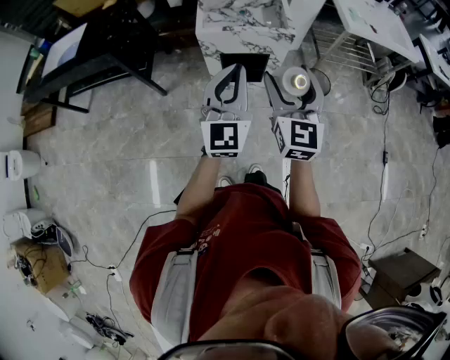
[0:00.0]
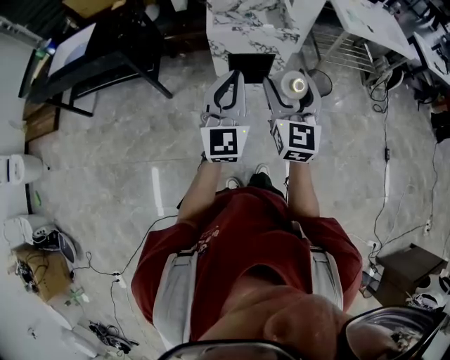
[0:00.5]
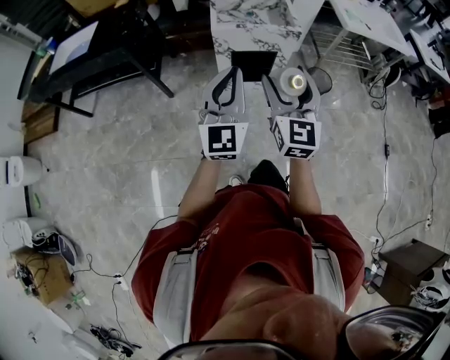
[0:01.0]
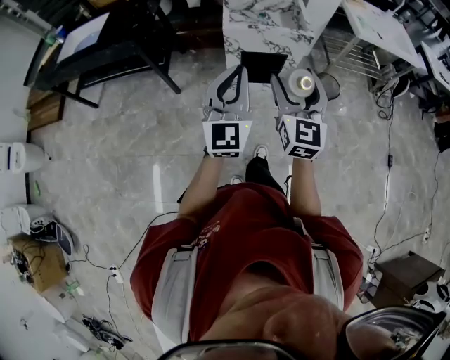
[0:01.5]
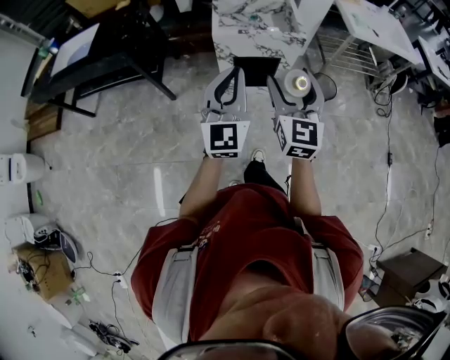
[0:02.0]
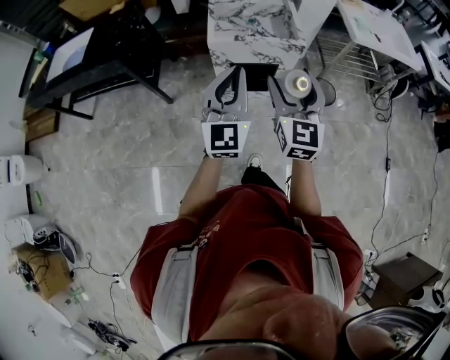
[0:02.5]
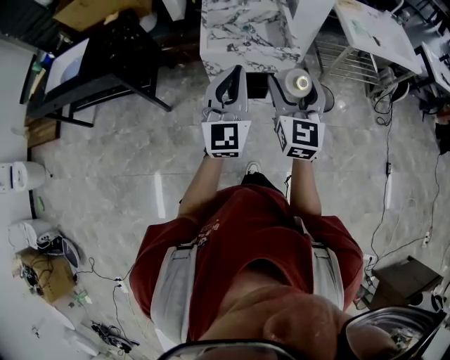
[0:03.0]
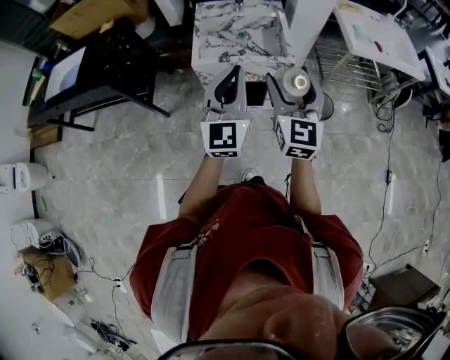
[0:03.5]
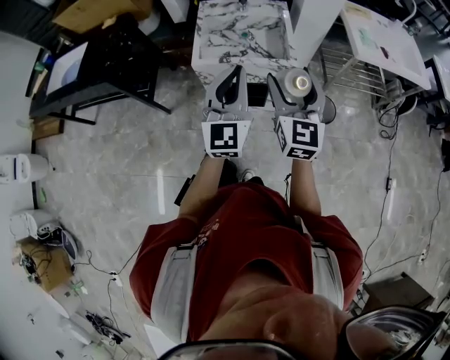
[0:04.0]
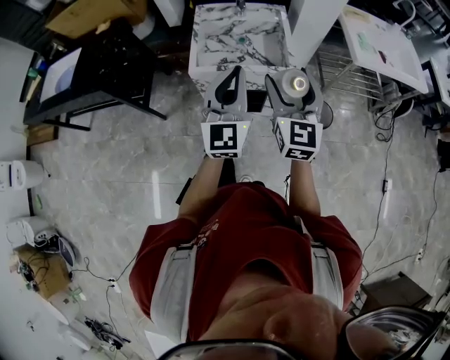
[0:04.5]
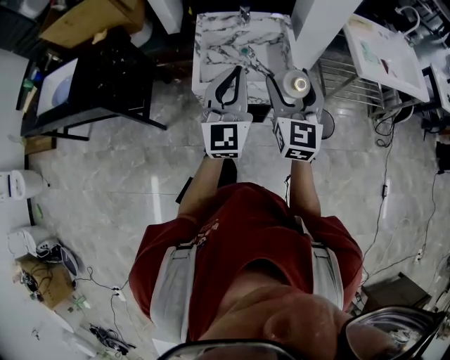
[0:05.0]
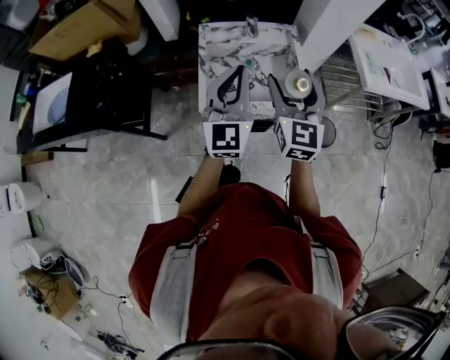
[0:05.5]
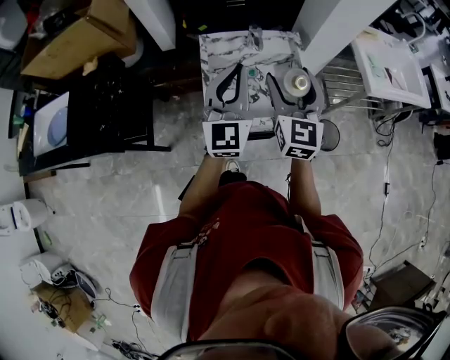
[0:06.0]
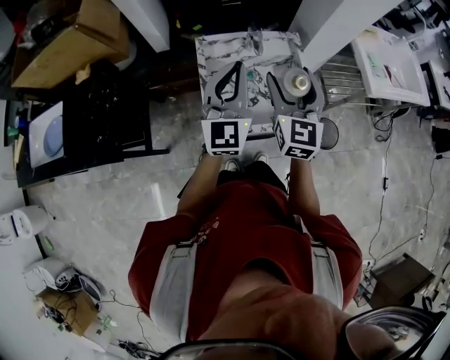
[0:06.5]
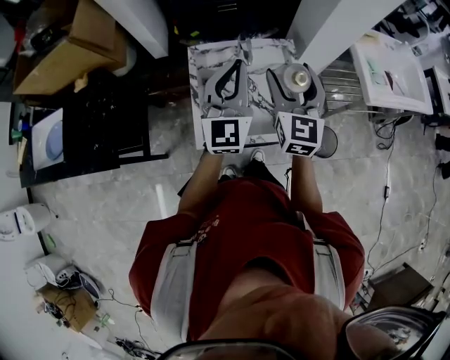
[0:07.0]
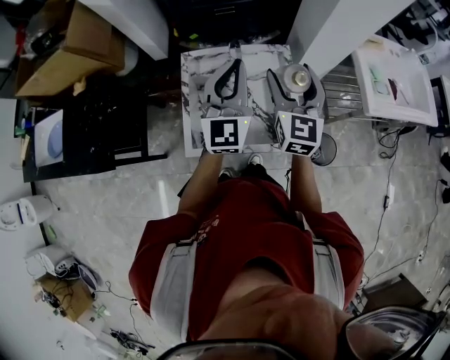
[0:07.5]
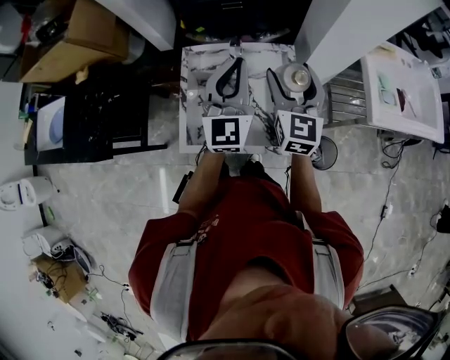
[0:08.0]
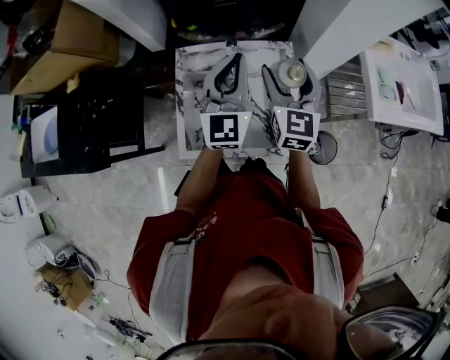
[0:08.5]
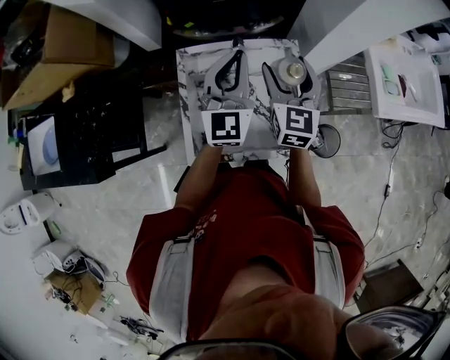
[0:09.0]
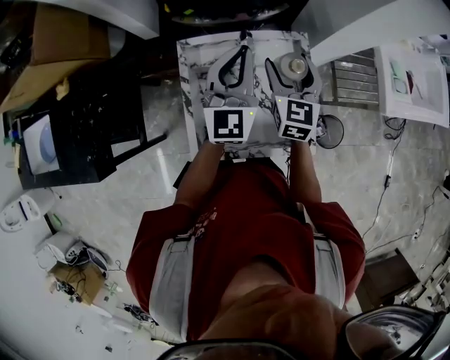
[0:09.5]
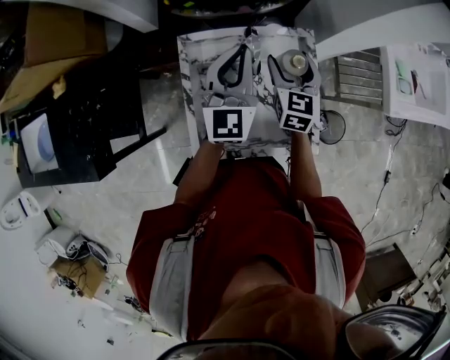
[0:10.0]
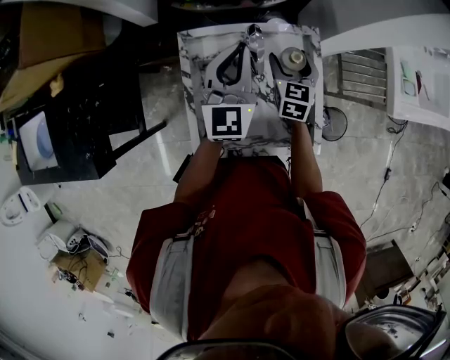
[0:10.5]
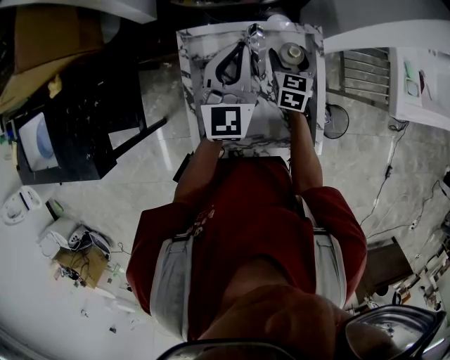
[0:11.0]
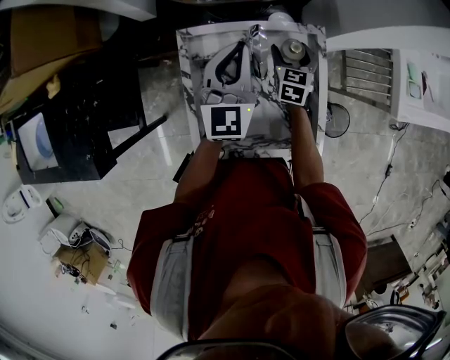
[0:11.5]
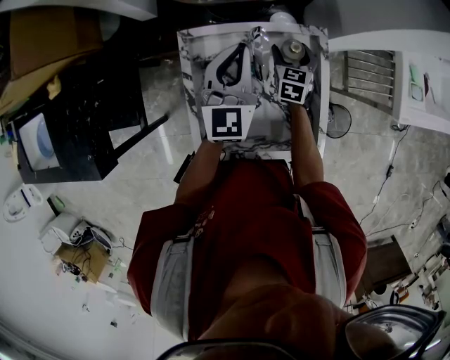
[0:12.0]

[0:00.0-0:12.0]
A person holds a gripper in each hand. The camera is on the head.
0:00.0 to 0:02.0: Both grippers travel together to the left, approximately 5 cm. The right gripper travels backward and back again, roughly 10 cm each way.
0:02.0 to 0:04.0: The two grippers go roughly 25 cm forward and to the right.
0:04.0 to 0:06.0: The two grippers go some 30 cm forward and to the left.
0:06.0 to 0:08.0: The grippers both shift forward and to the right by some 20 cm.
0:08.0 to 0:10.0: The right gripper moves downward, forward and to the left, some 20 cm. Meanwhile the left gripper moves forward, downward and to the left, approximately 15 cm.
0:10.0 to 0:12.0: The left gripper goes about 5 cm downward. The right gripper travels downward and forward by roughly 15 cm.

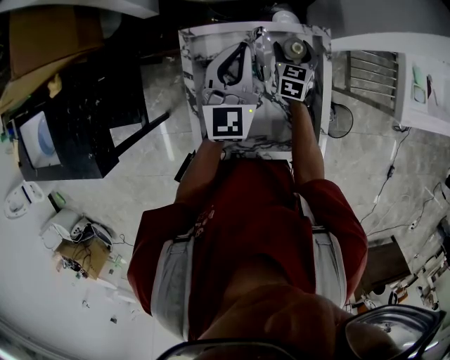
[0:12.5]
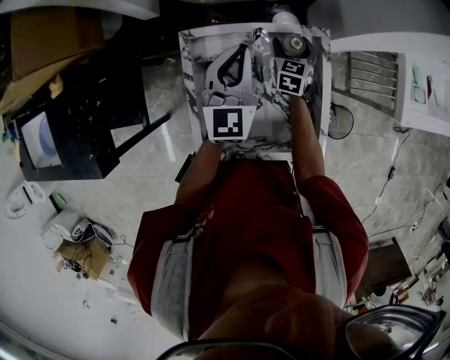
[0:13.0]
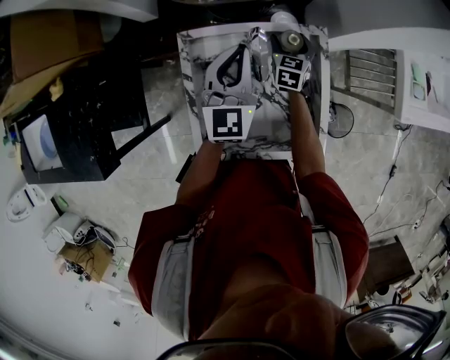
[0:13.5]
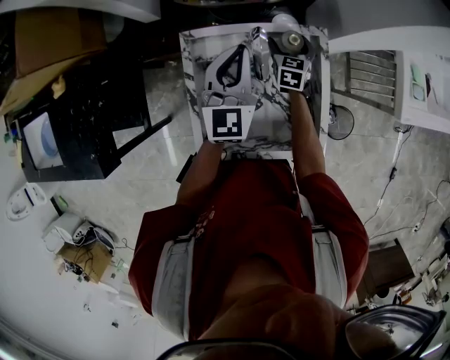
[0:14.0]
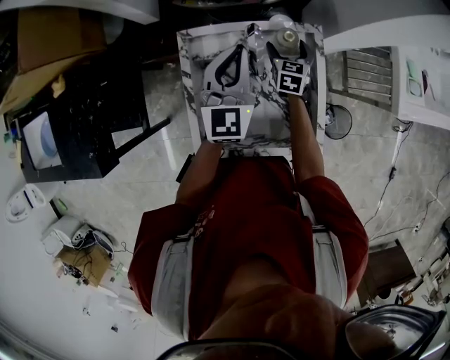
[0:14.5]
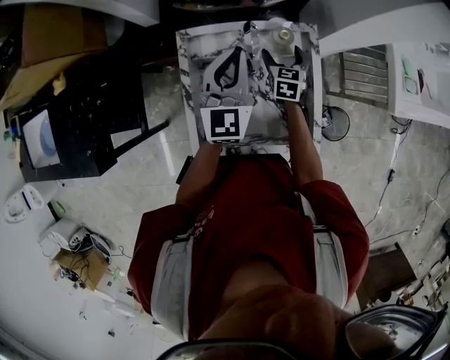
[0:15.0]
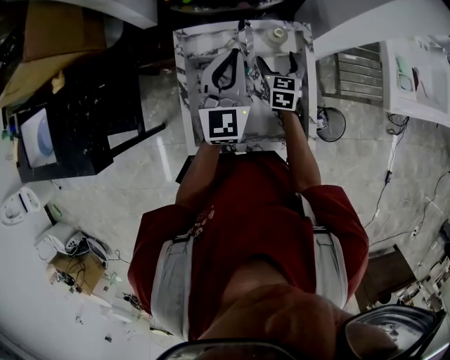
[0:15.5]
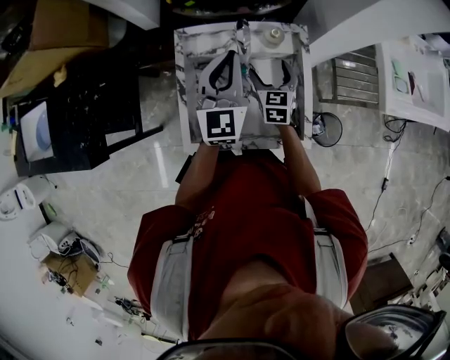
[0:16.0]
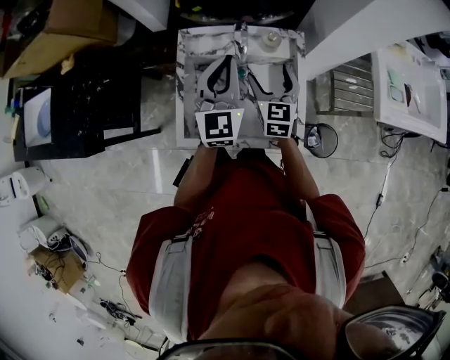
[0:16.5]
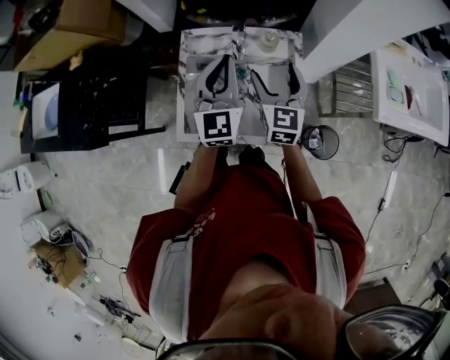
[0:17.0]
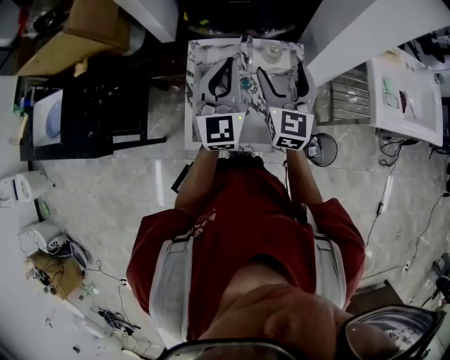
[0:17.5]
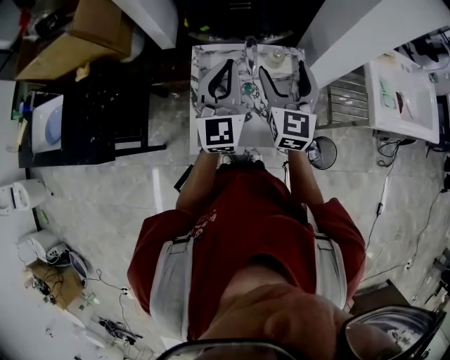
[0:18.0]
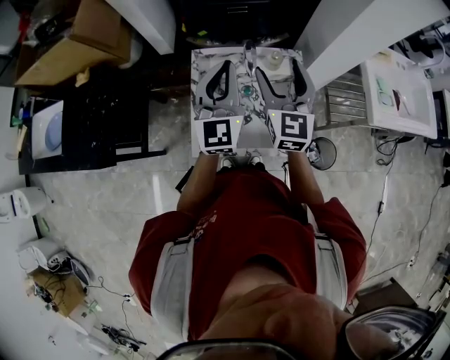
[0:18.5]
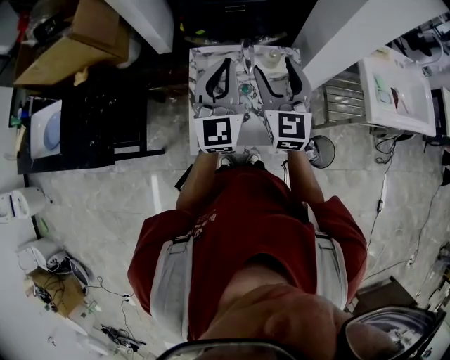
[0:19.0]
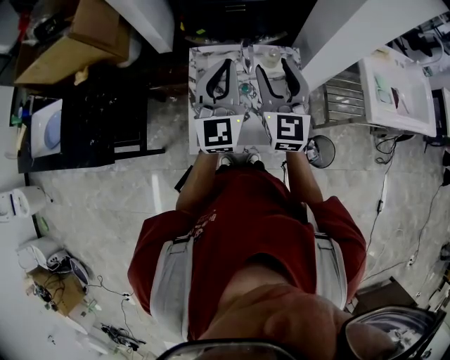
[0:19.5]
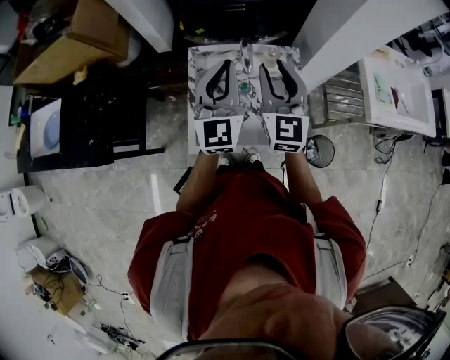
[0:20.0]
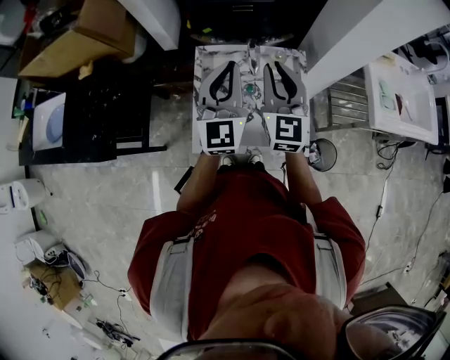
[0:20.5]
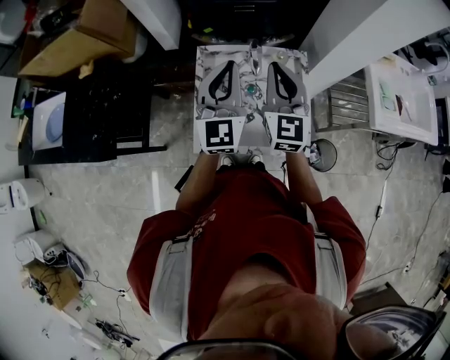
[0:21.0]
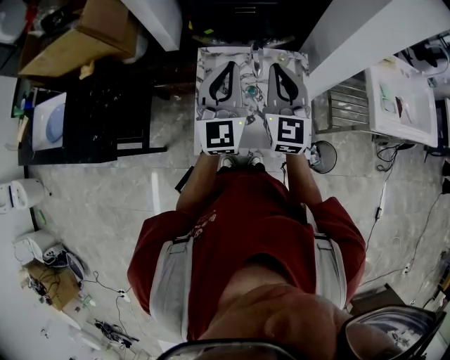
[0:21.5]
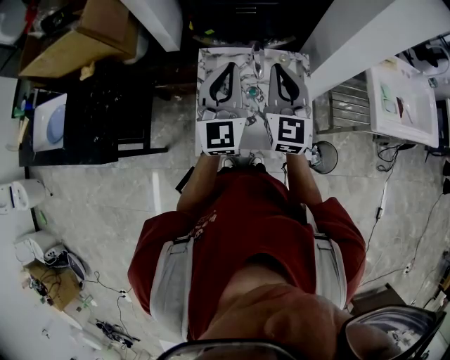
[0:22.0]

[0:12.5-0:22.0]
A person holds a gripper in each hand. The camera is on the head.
0:12.5 to 0:14.5: There are only small adjustments of the grippers.
0:14.5 to 0:16.5: The right gripper shifts some 20 cm backward and upward, and turns by approximately 20 degrees. The left gripper is displaced backward by approximately 10 cm.
0:16.5 to 0:18.0: The right gripper travels upward by approximately 20 cm; the left gripper travels upward by some 10 cm.
0:18.0 to 0:20.0: The right gripper closes its fingers.
0:20.0 to 0:22.0: The grippers move only a little.

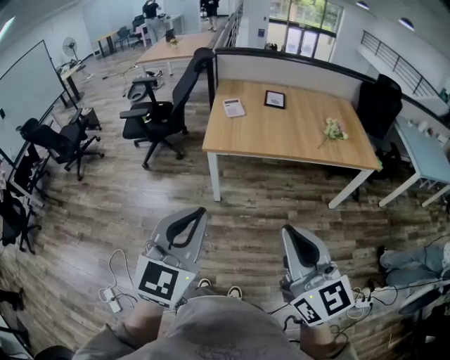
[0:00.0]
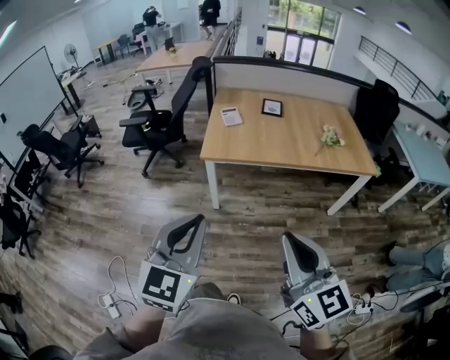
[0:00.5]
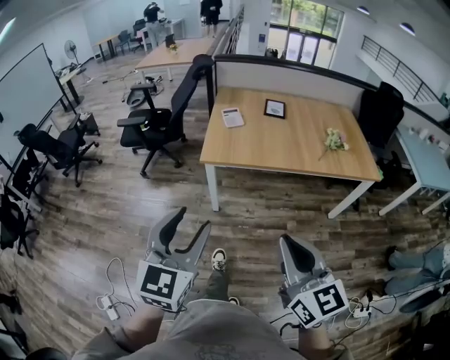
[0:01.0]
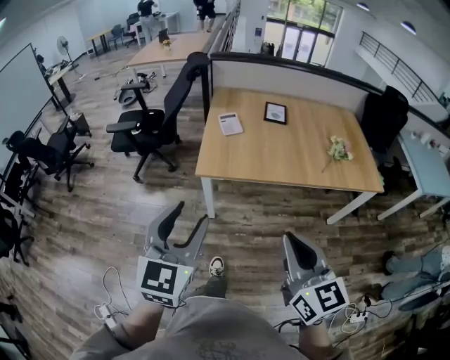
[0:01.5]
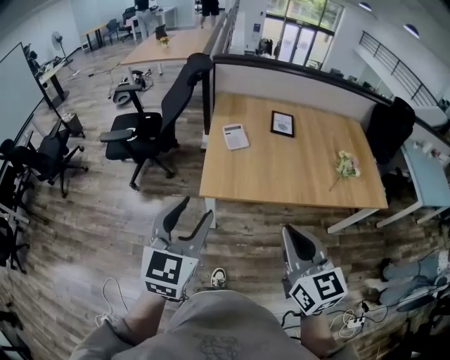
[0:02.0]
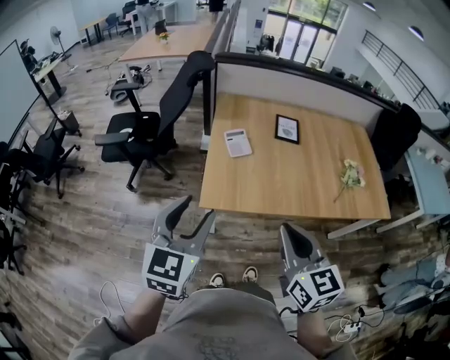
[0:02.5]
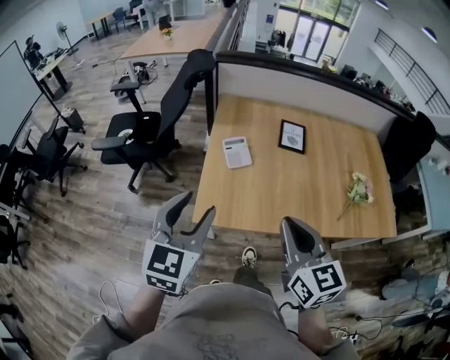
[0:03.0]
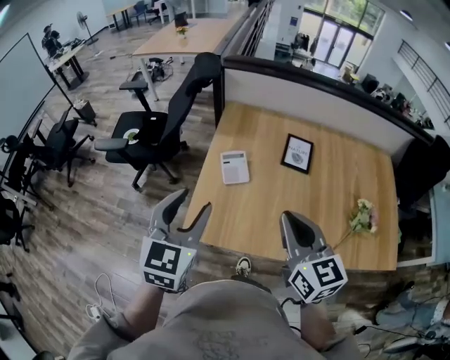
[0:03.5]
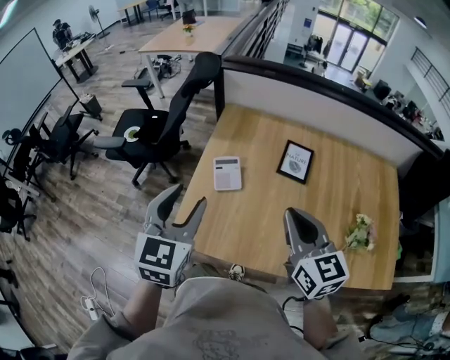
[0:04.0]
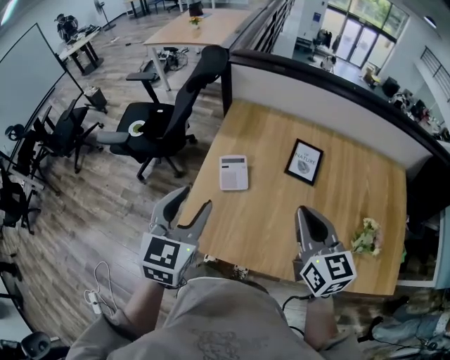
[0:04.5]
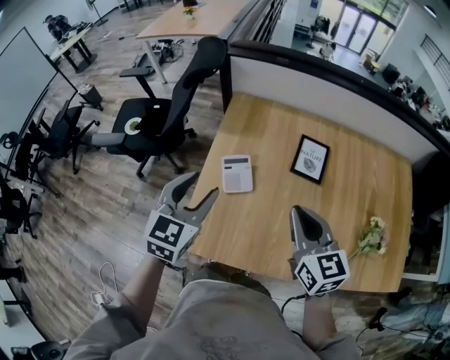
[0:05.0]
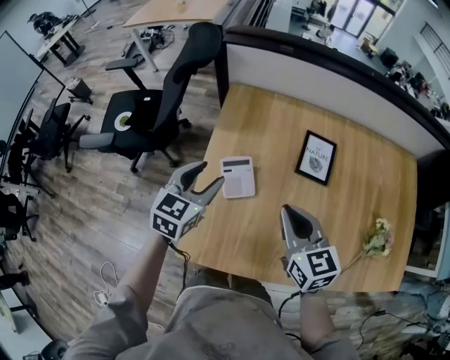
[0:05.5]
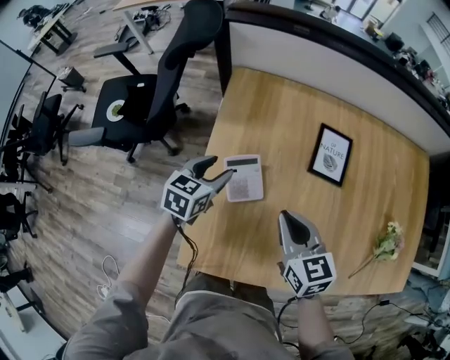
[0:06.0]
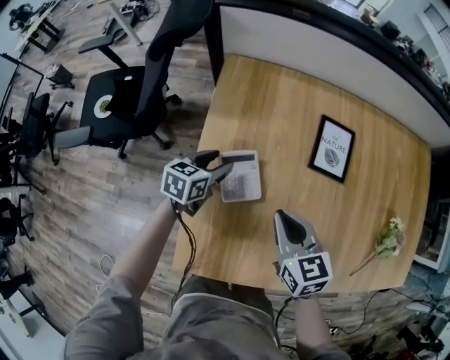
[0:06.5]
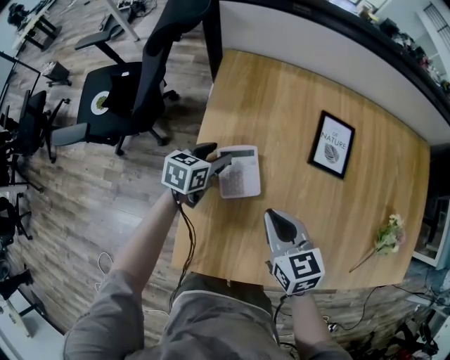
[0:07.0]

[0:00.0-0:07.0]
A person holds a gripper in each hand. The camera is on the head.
0:00.0 to 0:02.0: Both grippers move forward, about 35 cm. The left gripper opens its fingers.
0:02.0 to 0:03.5: The grippers both shift forward by some 30 cm.
0:03.5 to 0:05.0: Both grippers travel together forward and downward, about 15 cm.
0:05.0 to 0:07.0: The right gripper goes some 25 cm downward, to the left and forward, and swivels about 20 degrees. The left gripper moves downward and forward, roughly 35 cm, and rotates about 40 degrees.
